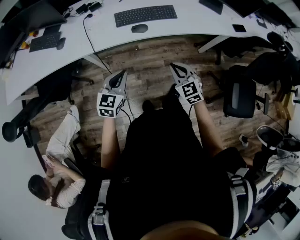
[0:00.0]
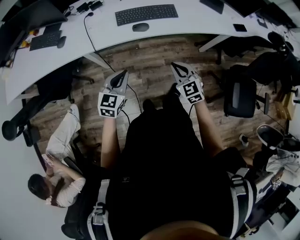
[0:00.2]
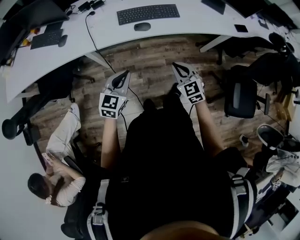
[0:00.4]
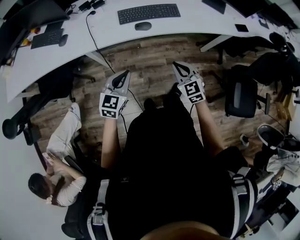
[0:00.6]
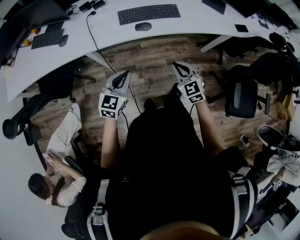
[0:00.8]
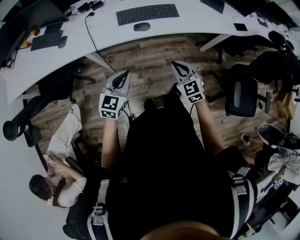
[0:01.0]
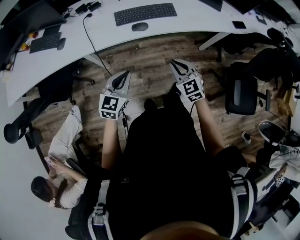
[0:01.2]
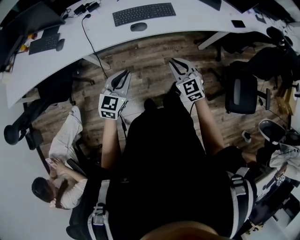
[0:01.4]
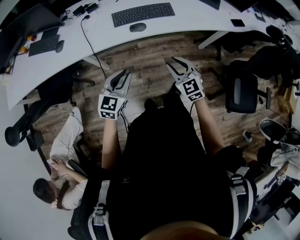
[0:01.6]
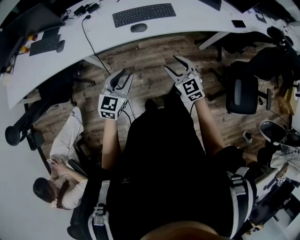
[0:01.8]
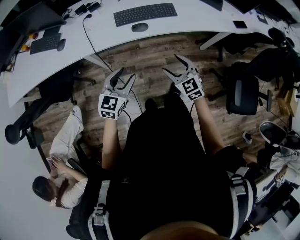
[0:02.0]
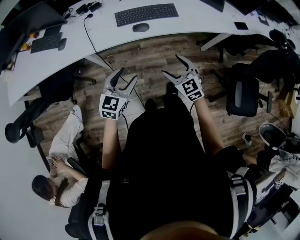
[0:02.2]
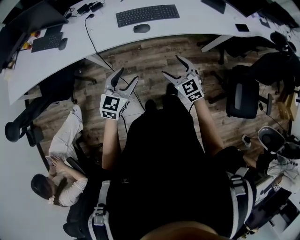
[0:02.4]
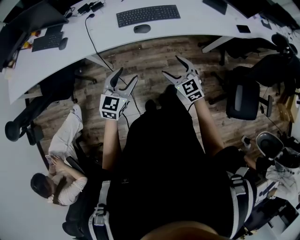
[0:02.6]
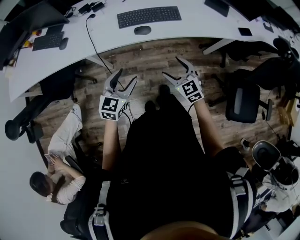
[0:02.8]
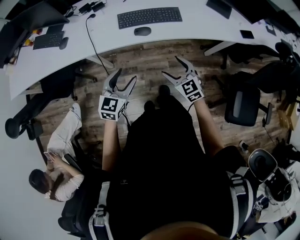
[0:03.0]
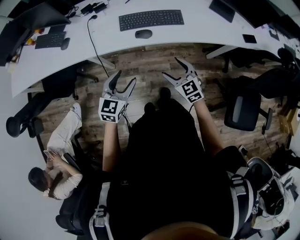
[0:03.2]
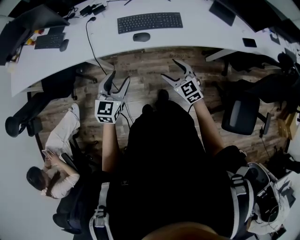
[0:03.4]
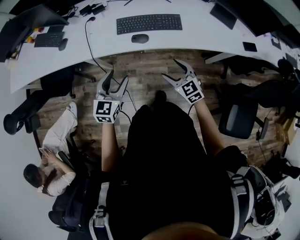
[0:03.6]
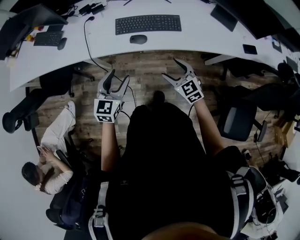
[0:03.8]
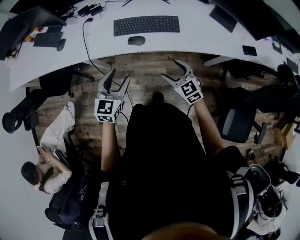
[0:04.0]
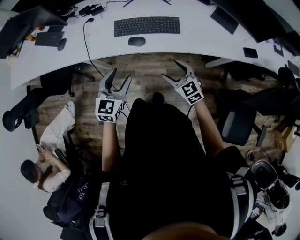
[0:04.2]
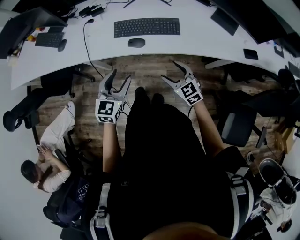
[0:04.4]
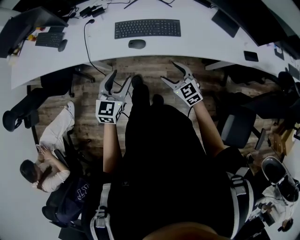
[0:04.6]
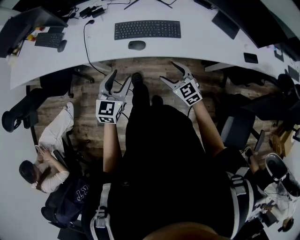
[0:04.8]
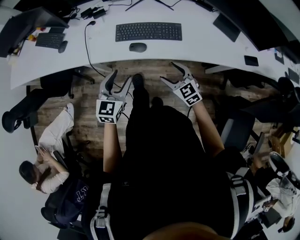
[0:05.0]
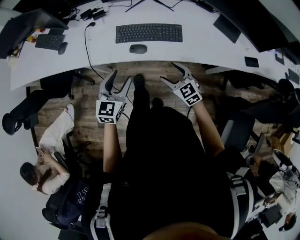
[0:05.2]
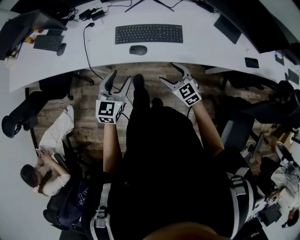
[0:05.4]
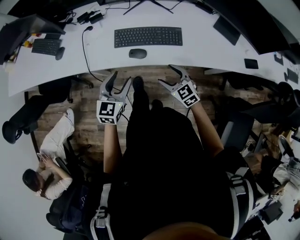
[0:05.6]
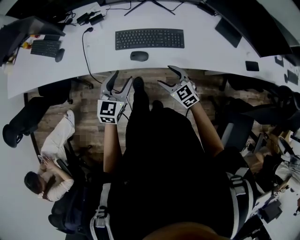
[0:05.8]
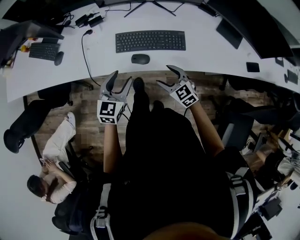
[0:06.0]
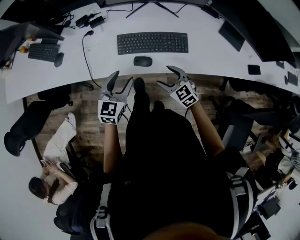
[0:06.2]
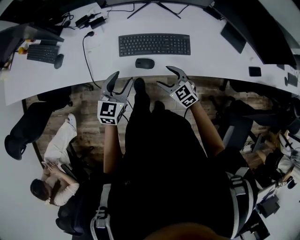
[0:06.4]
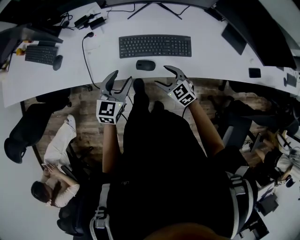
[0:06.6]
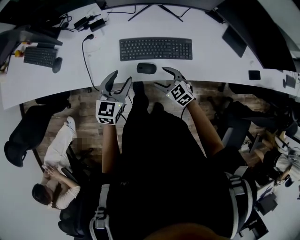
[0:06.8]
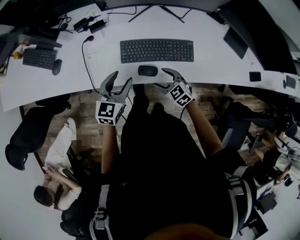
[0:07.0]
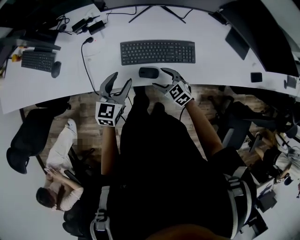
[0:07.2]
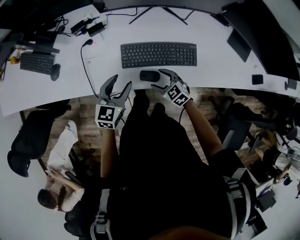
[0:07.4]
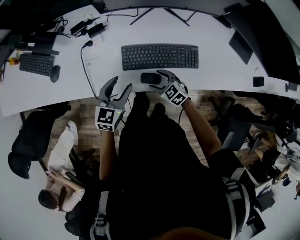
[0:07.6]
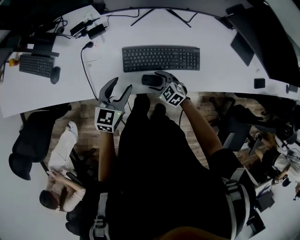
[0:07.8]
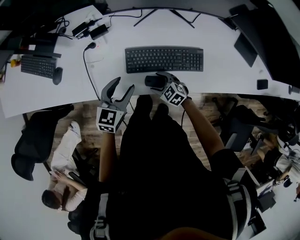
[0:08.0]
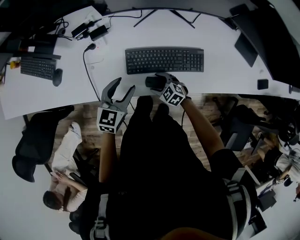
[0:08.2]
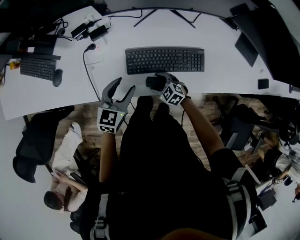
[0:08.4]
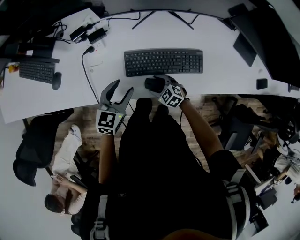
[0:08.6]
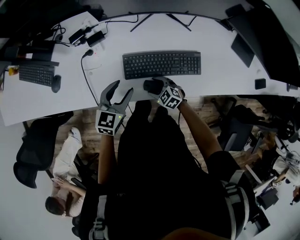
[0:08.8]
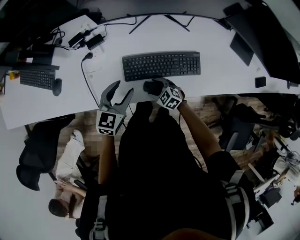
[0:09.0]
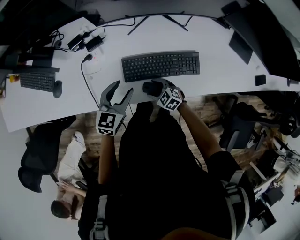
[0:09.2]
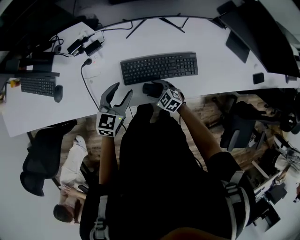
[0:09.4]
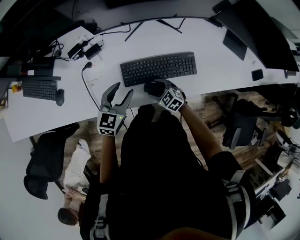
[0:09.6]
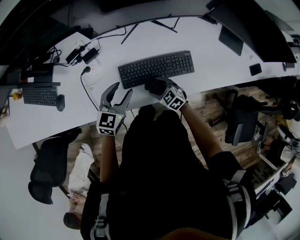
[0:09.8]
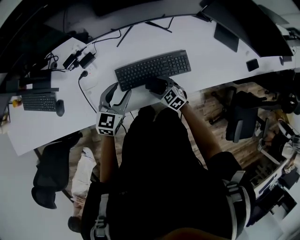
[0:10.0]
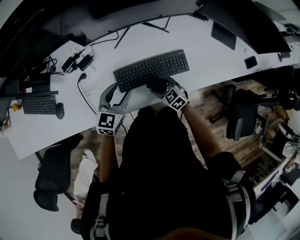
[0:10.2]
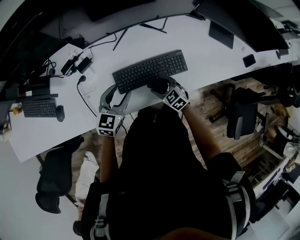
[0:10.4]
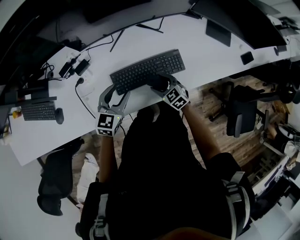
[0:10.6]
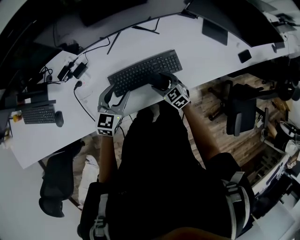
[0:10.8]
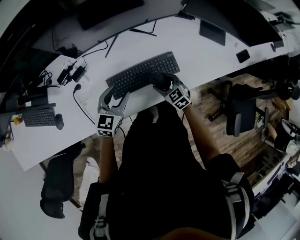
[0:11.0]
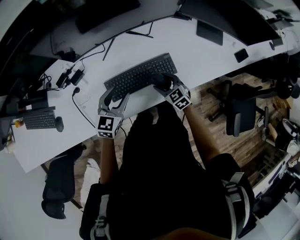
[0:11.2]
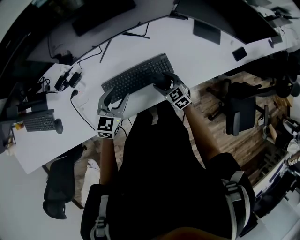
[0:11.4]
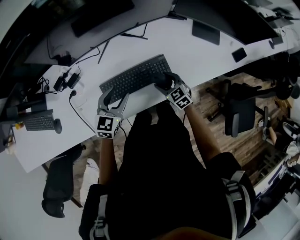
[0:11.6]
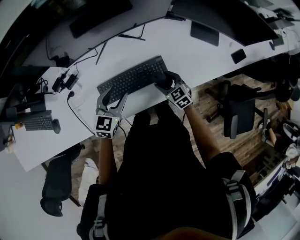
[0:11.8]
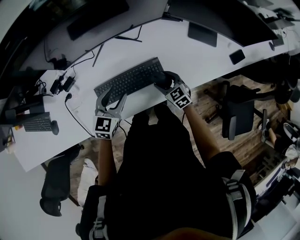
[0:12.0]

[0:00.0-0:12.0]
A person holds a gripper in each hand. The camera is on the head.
0:00.0 to 0:01.6: The grippers stay close to where they were, moving slightly.
0:01.6 to 0:03.0: The left gripper opens. Meanwhile the right gripper changes place by some 5 cm, and opens its fingers.
0:03.0 to 0:04.4: Both grippers move to the right and forward, roughly 10 cm.
0:04.4 to 0:06.0: The two grippers go roughly 10 cm forward.
0:06.0 to 0:07.6: The right gripper moves forward, downward and to the left, approximately 20 cm, while the left gripper goes some 15 cm forward.
0:07.6 to 0:09.0: The right gripper shifts by roughly 5 cm.
0:09.0 to 0:10.4: The right gripper travels to the right and upward by about 10 cm, and rotates roughly 20 degrees.
0:10.4 to 0:12.0: Both grippers travel together to the right, approximately 15 cm.

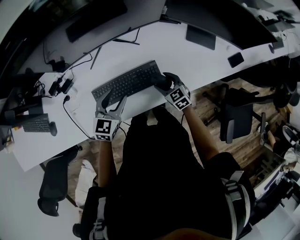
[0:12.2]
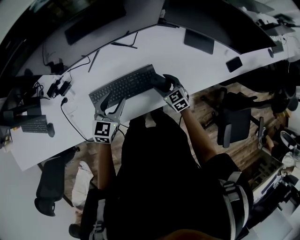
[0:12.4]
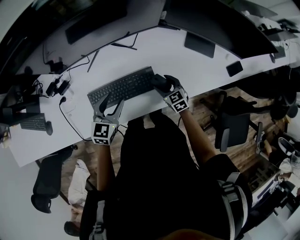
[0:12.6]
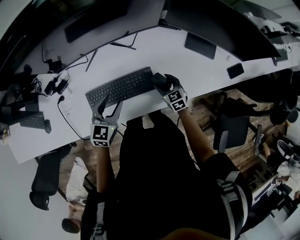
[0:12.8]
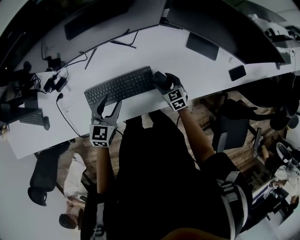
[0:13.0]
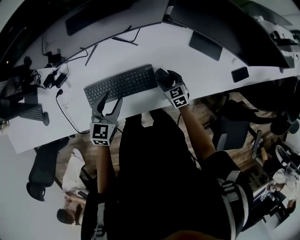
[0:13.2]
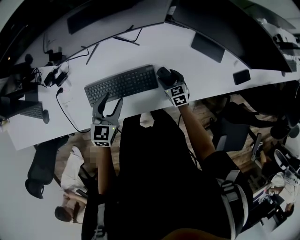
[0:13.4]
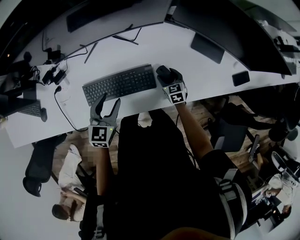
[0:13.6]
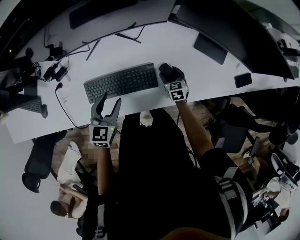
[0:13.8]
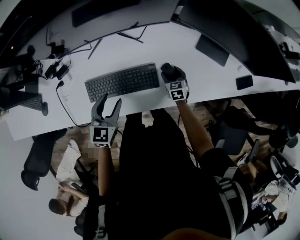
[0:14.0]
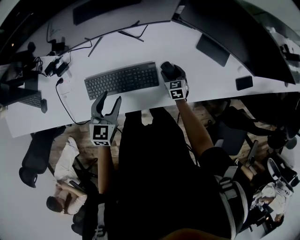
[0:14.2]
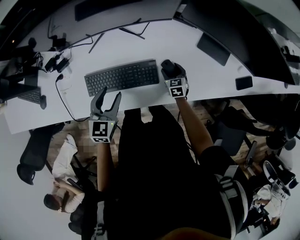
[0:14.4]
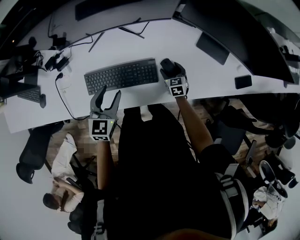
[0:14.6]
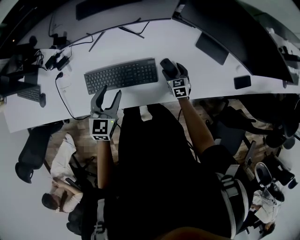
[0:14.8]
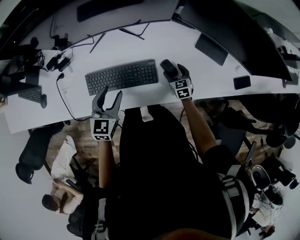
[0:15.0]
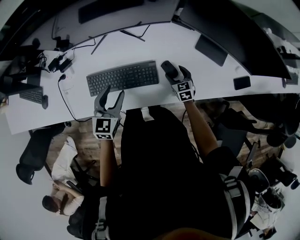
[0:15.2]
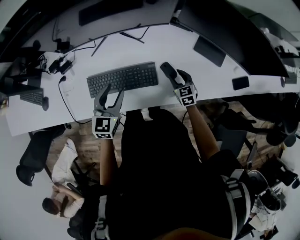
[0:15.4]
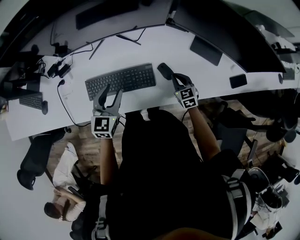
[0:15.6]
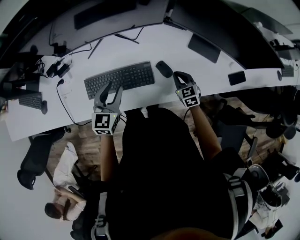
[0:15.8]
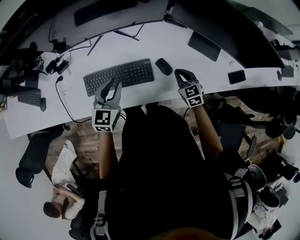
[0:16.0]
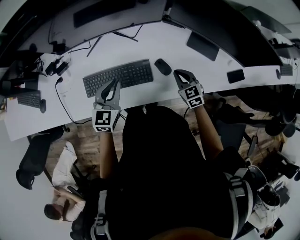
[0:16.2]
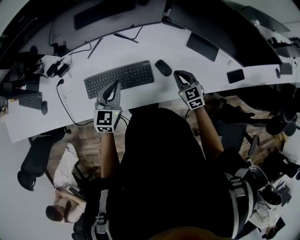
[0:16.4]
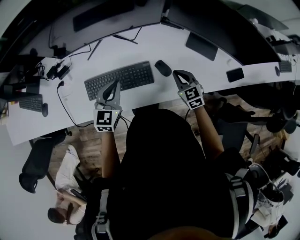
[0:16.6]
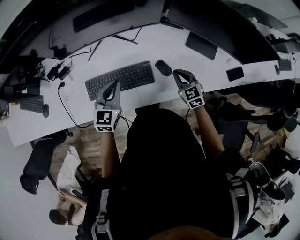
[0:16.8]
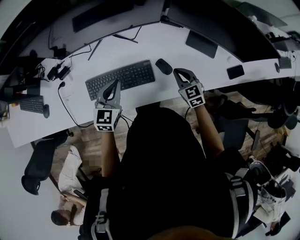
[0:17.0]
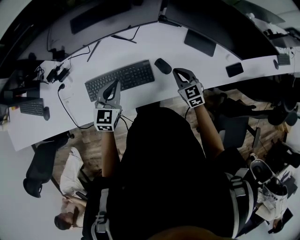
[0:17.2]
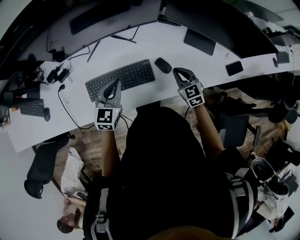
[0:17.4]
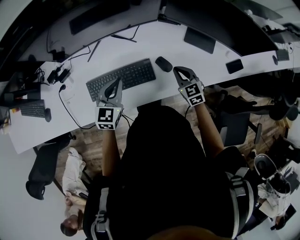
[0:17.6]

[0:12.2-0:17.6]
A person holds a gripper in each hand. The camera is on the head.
0:12.2 to 0:13.6: The right gripper moves downward, to the right and forward, approximately 15 cm.
0:13.6 to 0:15.0: There are only small adjustments of the grippers.
0:15.0 to 0:16.2: The left gripper closes up; the right gripper goes approximately 10 cm upward, and closes its fingers.
0:16.2 to 0:17.6: The grippers make only small movements.
